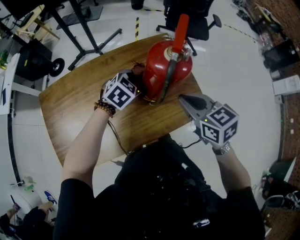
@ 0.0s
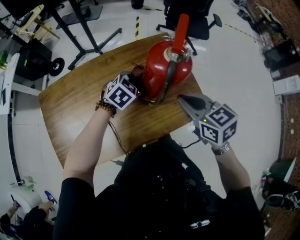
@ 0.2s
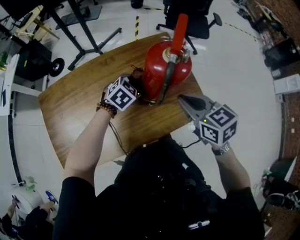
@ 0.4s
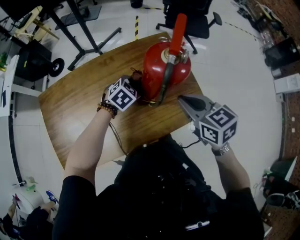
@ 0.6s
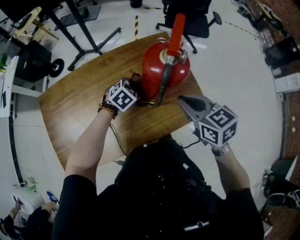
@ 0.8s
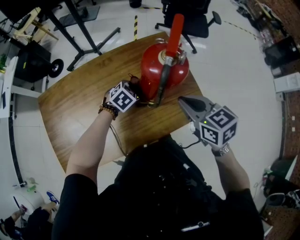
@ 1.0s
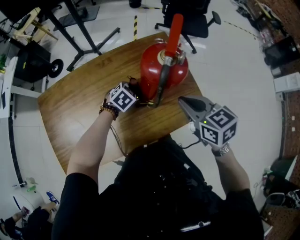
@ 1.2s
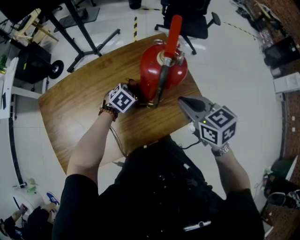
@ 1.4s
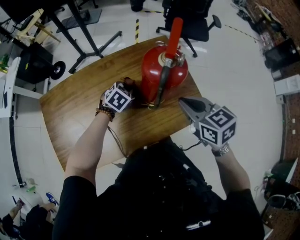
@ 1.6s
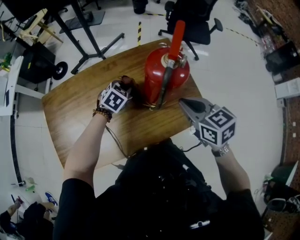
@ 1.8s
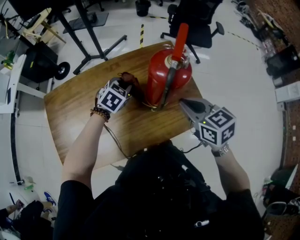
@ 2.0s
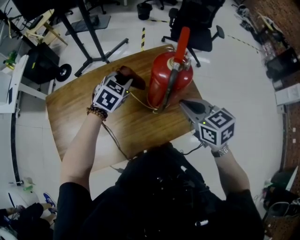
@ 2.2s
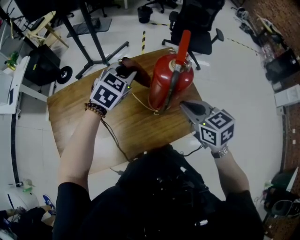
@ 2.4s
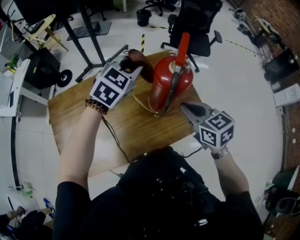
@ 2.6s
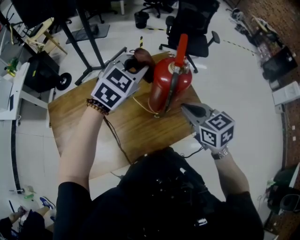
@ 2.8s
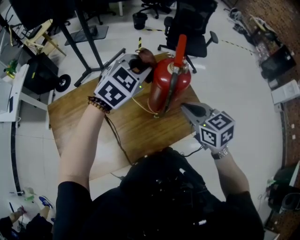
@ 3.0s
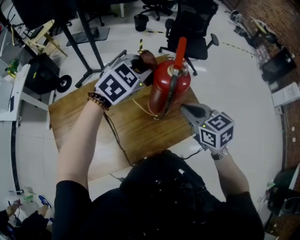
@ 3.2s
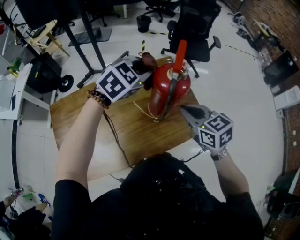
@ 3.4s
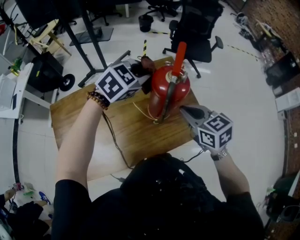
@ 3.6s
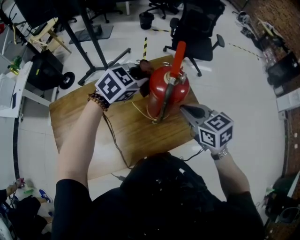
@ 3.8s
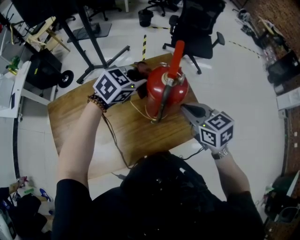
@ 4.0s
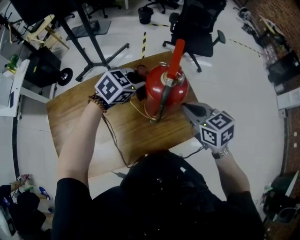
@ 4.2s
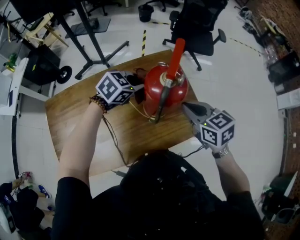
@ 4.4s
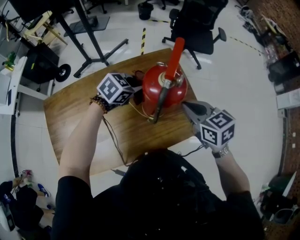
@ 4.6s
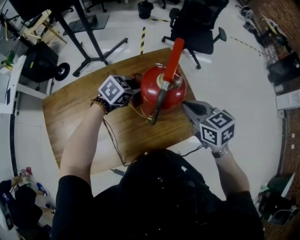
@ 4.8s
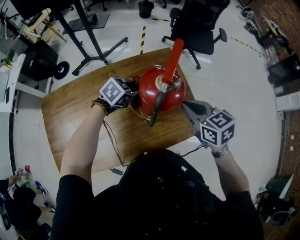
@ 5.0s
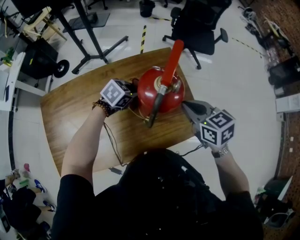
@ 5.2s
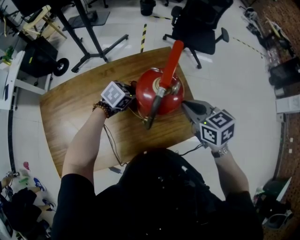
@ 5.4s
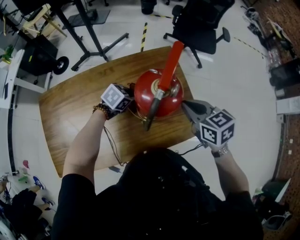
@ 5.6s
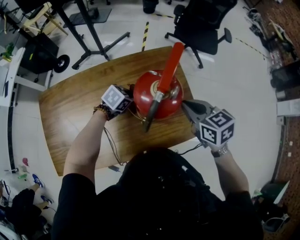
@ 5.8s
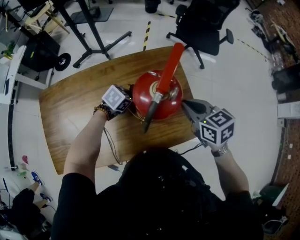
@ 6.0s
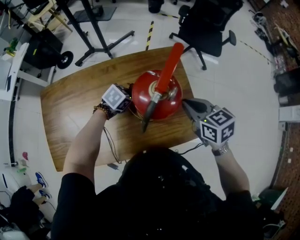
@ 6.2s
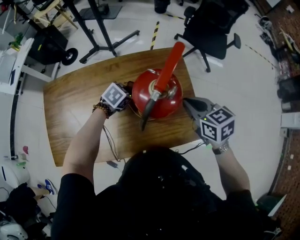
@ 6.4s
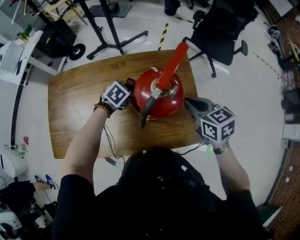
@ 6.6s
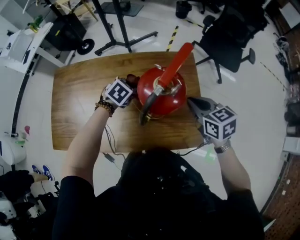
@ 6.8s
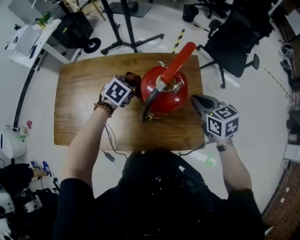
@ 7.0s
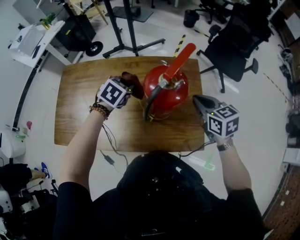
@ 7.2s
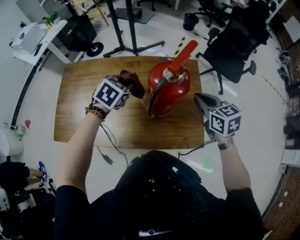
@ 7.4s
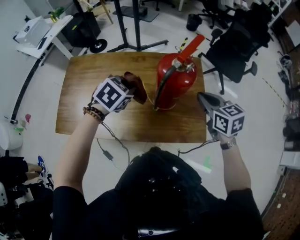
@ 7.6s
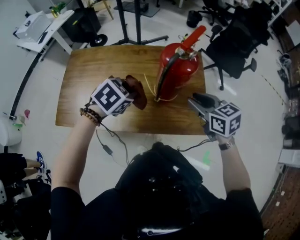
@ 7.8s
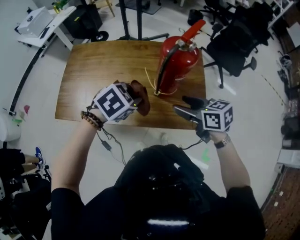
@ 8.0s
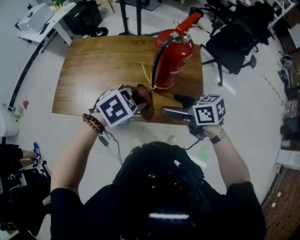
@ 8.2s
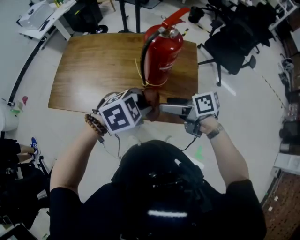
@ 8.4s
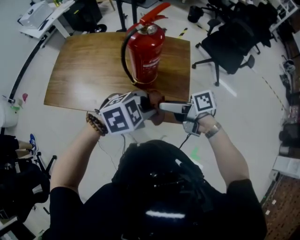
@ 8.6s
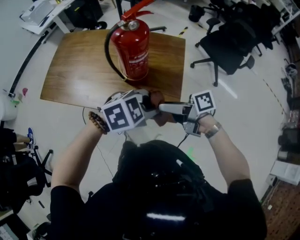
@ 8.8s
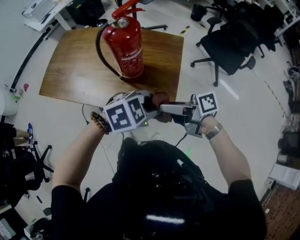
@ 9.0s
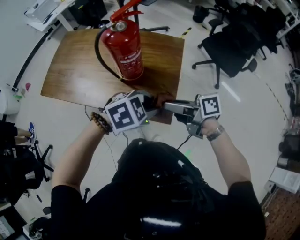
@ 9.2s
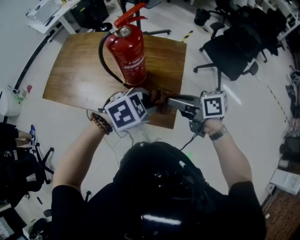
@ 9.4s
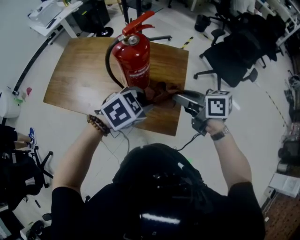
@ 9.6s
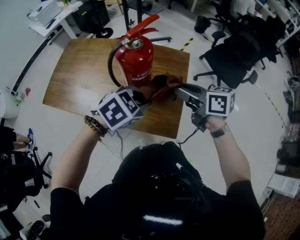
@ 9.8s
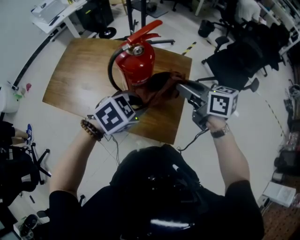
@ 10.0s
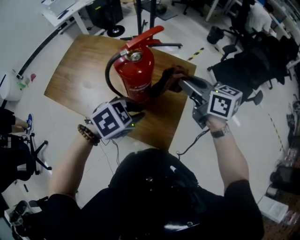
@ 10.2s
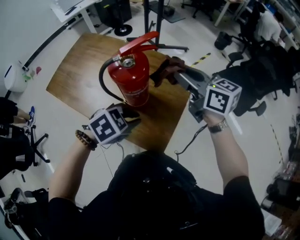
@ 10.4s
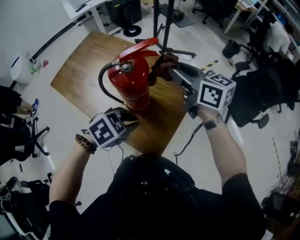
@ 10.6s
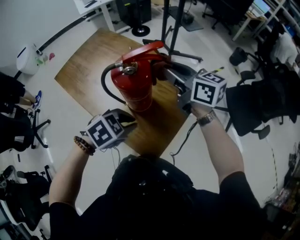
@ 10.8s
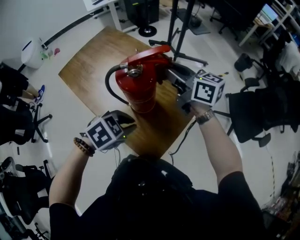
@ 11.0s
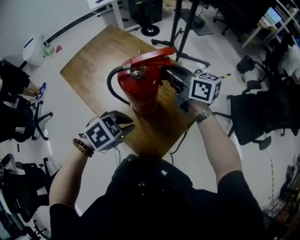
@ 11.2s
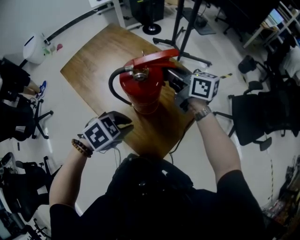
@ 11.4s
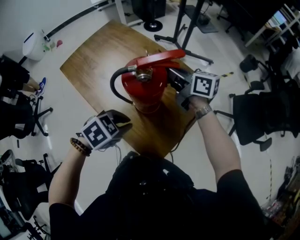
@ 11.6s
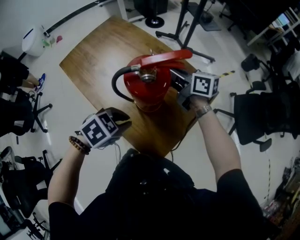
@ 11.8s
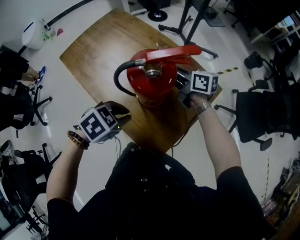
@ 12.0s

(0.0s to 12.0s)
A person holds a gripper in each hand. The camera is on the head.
0.0s - 1.6s: The left gripper travels downward by roughly 10 cm.
1.6s - 3.0s: The left gripper is displaced upward by some 30 cm, and swivels approximately 30 degrees.
3.0s - 4.4s: The left gripper travels downward by roughly 15 cm, and turns by some 30 degrees. Meanwhile the right gripper is displaced forward by some 5 cm.
4.4s - 6.0s: The right gripper moves some 5 cm. The left gripper travels downward by approximately 15 cm, and changes its angle by about 20 degrees.
6.0s - 7.6s: The left gripper travels upward by about 20 cm, and swivels some 30 degrees.
7.6s - 9.0s: The right gripper changes place by approximately 15 cm, turns by about 70 degrees, and opens, while the left gripper changes place by roughly 35 cm, and turns by some 20 degrees.
9.0s - 10.4s: The right gripper shifts by approximately 30 cm, twists approximately 50 degrees counterclockwise, seen from behind, and closes; the left gripper changes place by about 15 cm, and turns by about 30 degrees.
10.4s - 12.0s: The left gripper shifts by about 10 cm, and turns by roughly 20 degrees. Meanwhile the right gripper shifts roughly 15 cm downward, and rotates approximately 30 degrees.

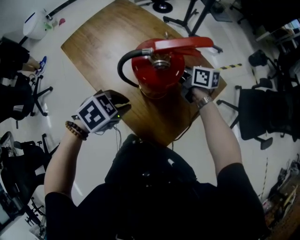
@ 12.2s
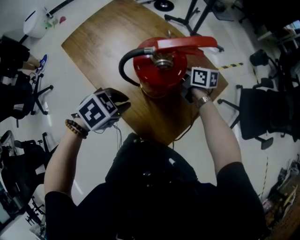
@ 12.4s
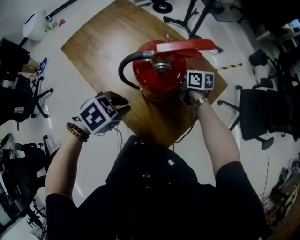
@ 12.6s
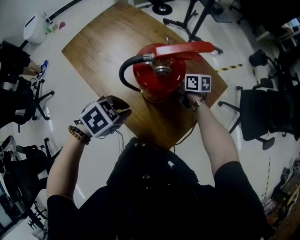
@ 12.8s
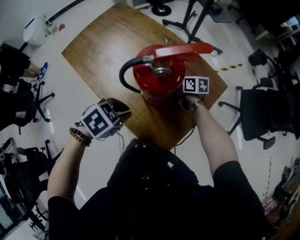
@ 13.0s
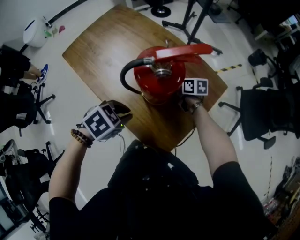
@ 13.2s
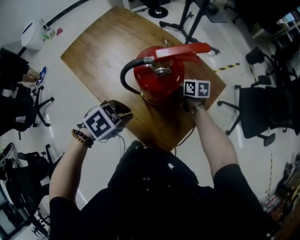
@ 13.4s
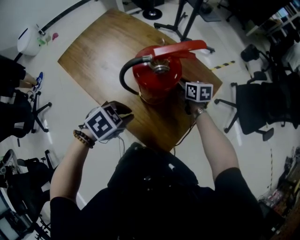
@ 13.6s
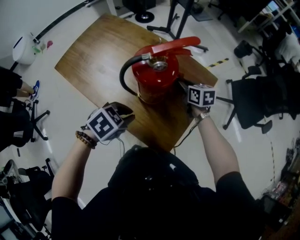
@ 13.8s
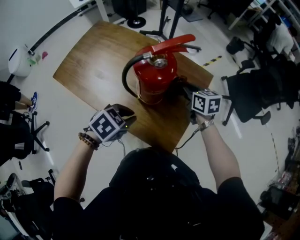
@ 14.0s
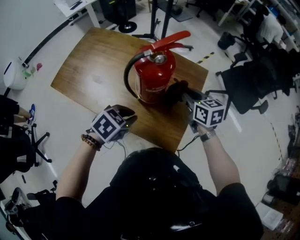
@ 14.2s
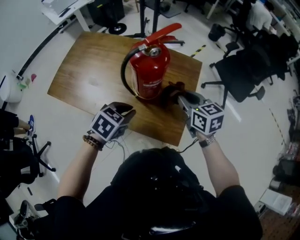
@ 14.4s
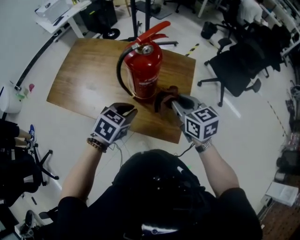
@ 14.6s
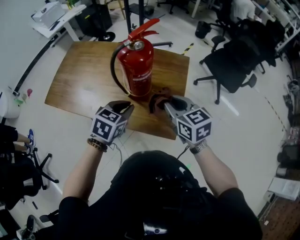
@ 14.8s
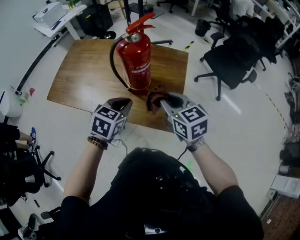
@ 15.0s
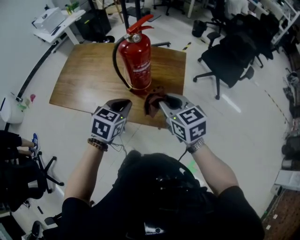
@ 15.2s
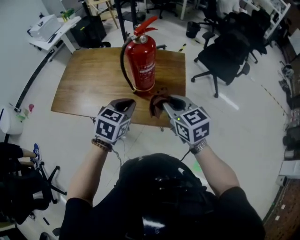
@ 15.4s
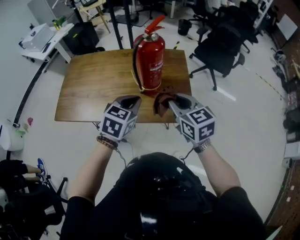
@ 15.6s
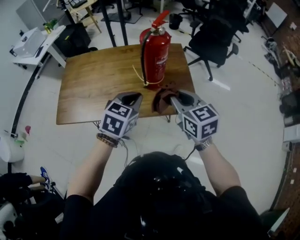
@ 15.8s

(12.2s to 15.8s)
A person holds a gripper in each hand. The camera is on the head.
12.2s - 14.0s: The right gripper goes downward and returns, approximately 10 cm each way, and swivels about 30 degrees.
14.0s - 15.8s: The left gripper heads upward and to the left, covering approximately 15 cm, and rotates roughly 30 degrees. The right gripper is displaced backward and upward by approximately 30 cm, and changes its angle by approximately 30 degrees.

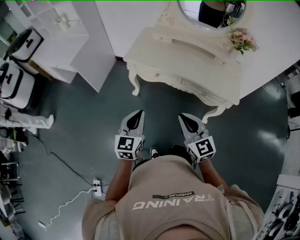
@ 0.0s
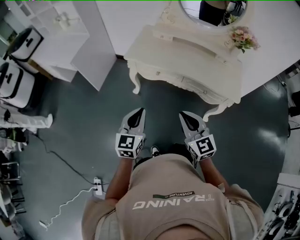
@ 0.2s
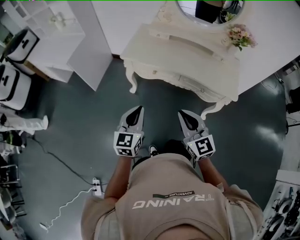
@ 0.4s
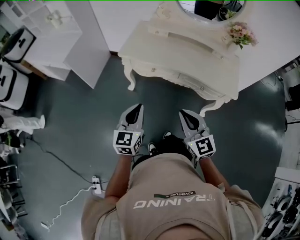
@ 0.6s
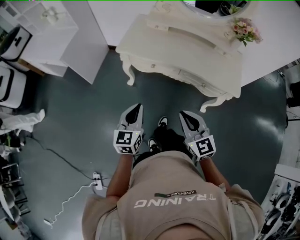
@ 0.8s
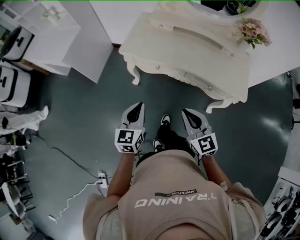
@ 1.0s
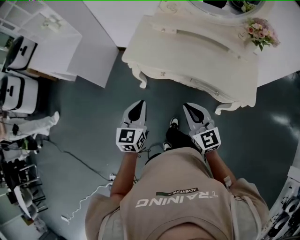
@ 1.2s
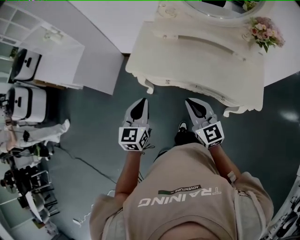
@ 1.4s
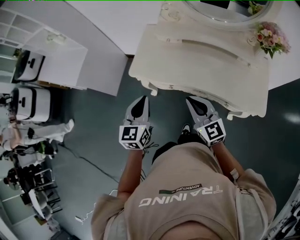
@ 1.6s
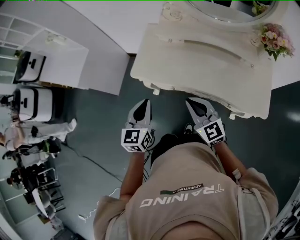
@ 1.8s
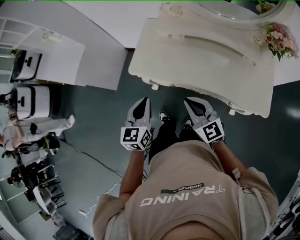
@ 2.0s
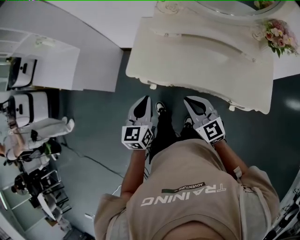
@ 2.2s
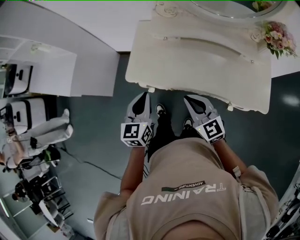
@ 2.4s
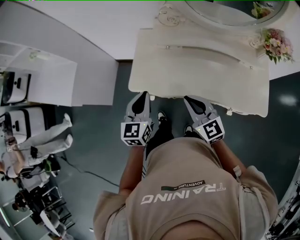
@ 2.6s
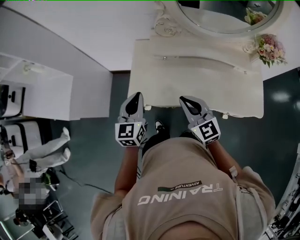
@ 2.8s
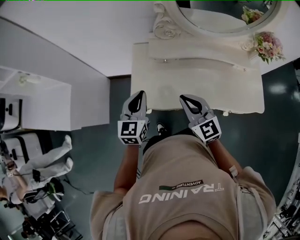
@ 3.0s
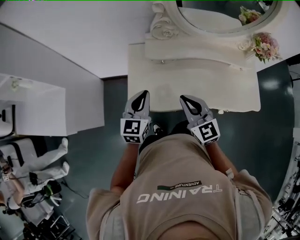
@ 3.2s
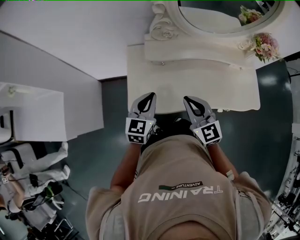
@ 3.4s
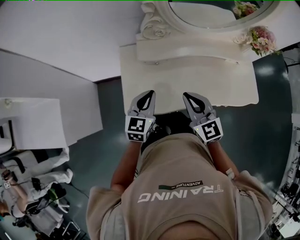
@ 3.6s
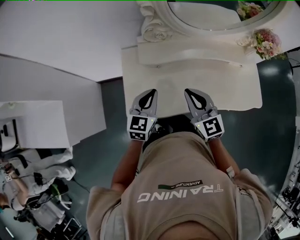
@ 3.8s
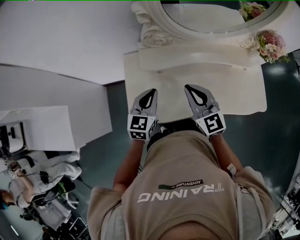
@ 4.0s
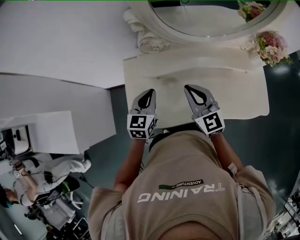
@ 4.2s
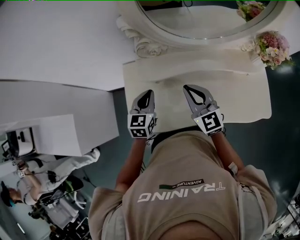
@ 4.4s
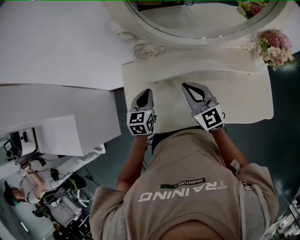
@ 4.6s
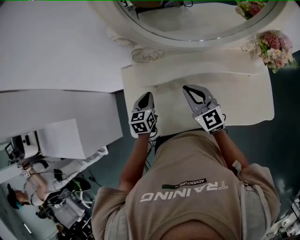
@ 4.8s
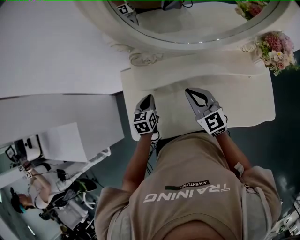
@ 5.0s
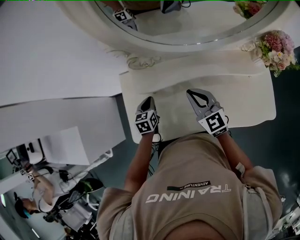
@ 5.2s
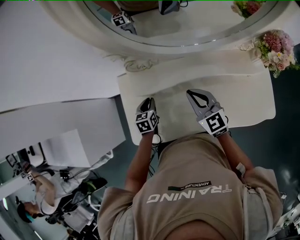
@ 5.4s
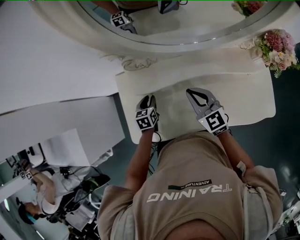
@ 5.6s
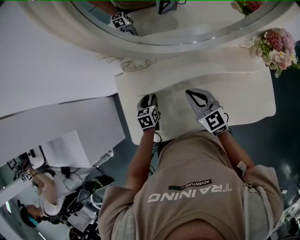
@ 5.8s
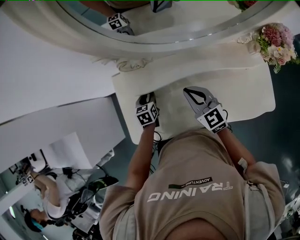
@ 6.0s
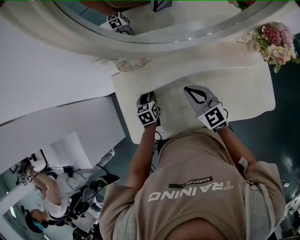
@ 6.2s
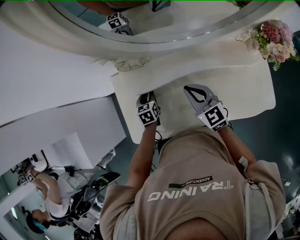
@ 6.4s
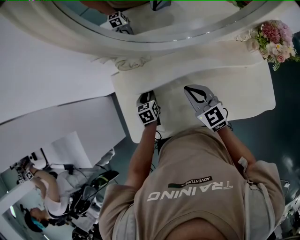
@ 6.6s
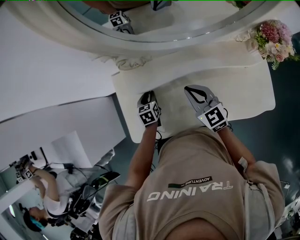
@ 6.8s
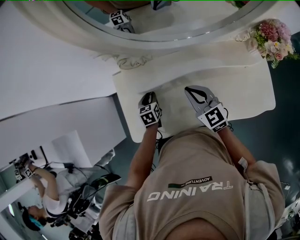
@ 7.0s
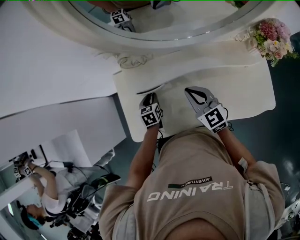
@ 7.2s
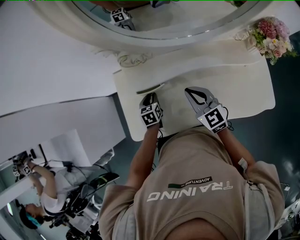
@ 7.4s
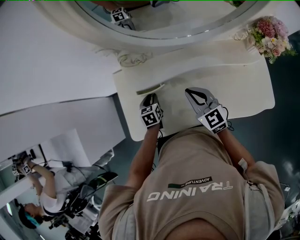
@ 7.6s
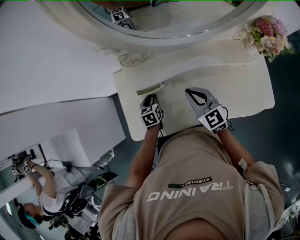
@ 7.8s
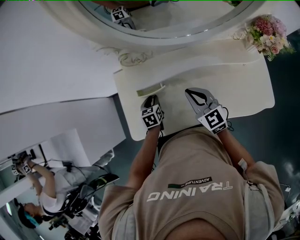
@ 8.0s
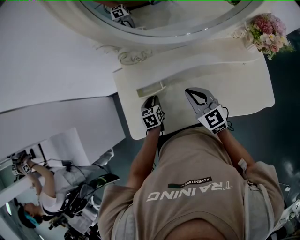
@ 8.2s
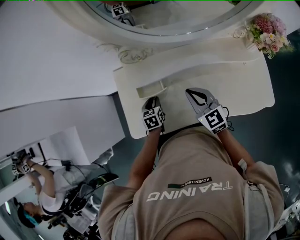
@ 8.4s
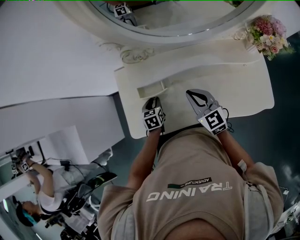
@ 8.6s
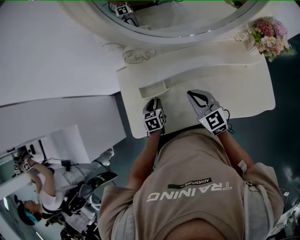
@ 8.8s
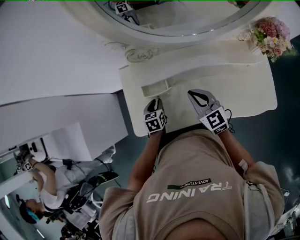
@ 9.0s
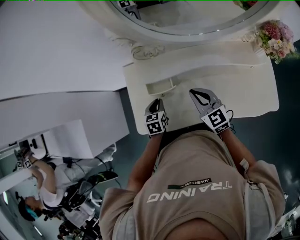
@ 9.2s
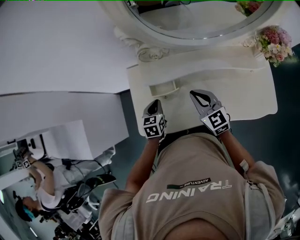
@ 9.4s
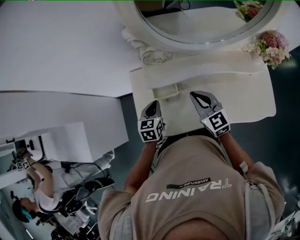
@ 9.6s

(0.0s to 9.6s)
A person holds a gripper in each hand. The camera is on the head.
0.0s - 1.6s: Both grippers move forward, roughly 25 cm.
1.6s - 3.2s: The grippers both shift forward by roughly 20 cm.
3.2s - 4.8s: The right gripper travels forward and to the right by approximately 20 cm, while the left gripper is displaced forward, downward and to the right by about 20 cm, and turns by about 20 degrees.
4.8s - 6.4s: The right gripper changes place by about 5 cm. Meanwhile the left gripper heads downward, covering about 10 cm, and opens its fingers.
6.4s - 8.0s: The left gripper shifts some 5 cm backward.
8.0s - 9.6s: The left gripper is displaced upward by approximately 10 cm, and closes its fingers, while the right gripper ends up approximately 5 cm from where it was.
